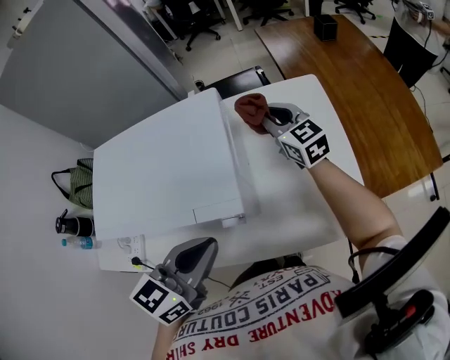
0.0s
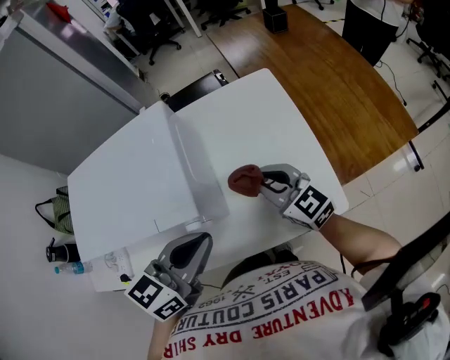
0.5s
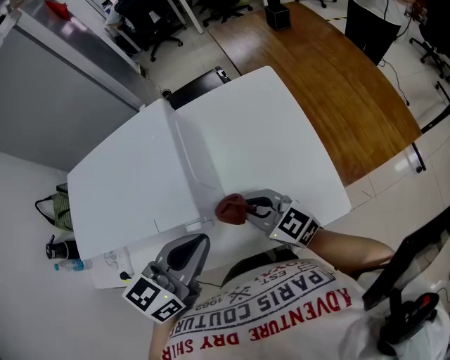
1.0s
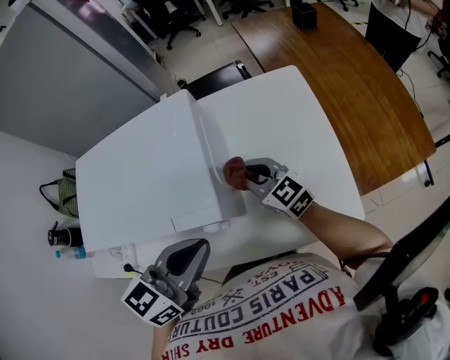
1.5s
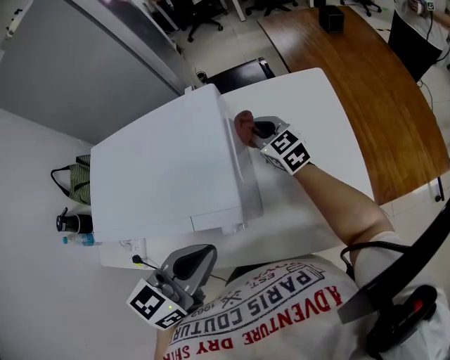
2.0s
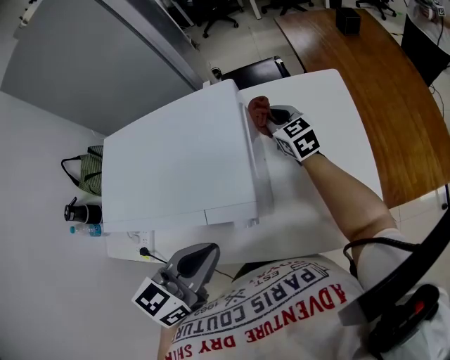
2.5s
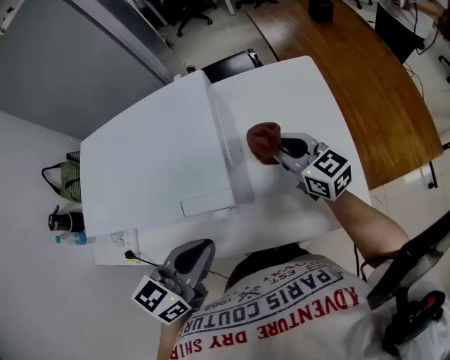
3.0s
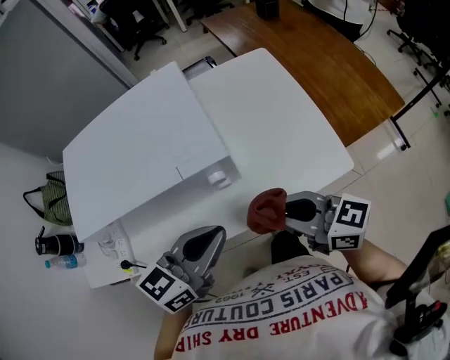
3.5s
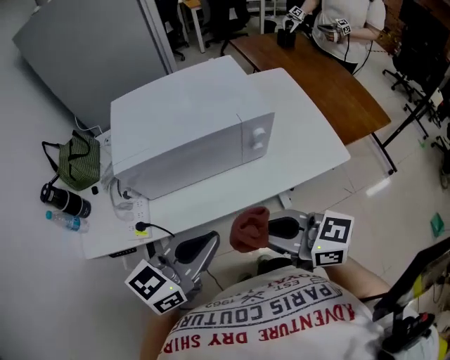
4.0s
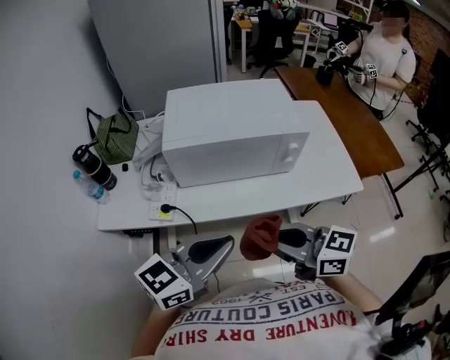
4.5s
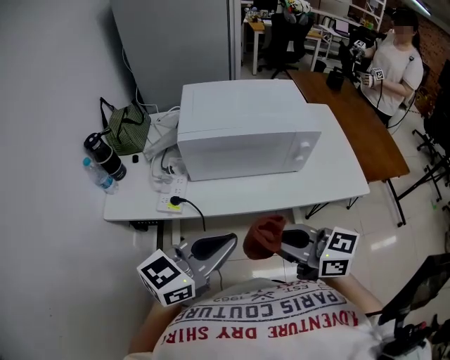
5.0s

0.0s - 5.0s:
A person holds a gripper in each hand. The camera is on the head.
0.0s - 2.5s: The left gripper reaches roughly 5 cm to the right, then returns. Meanwhile the right gripper heads downward, covering approximately 10 cm, and reaches approximately 25 cm backward, then returns.
2.5s - 5.0s: The left gripper travels backward and to the left by some 35 cm, and rotates roughly 20 degrees. Meanwhile the right gripper shifts roughly 60 cm backward and to the left, and rotates roughly 30 degrees.

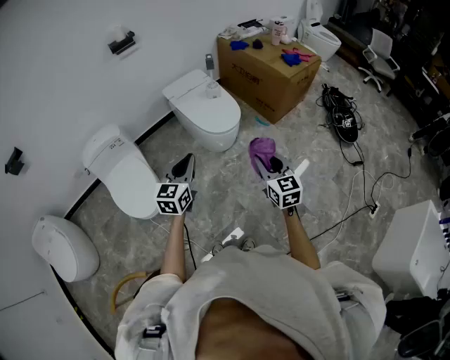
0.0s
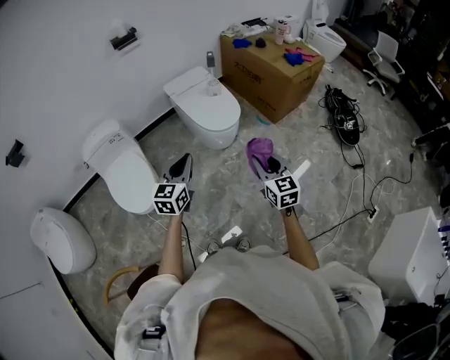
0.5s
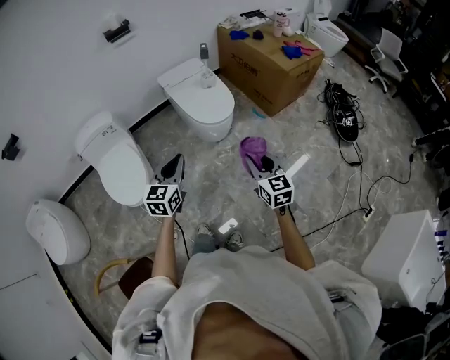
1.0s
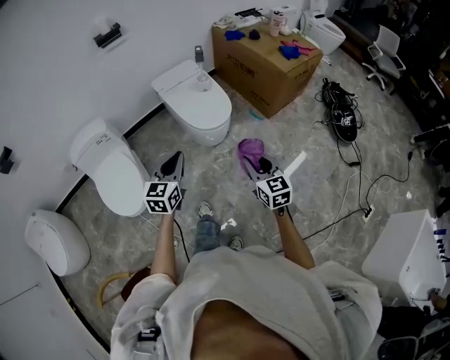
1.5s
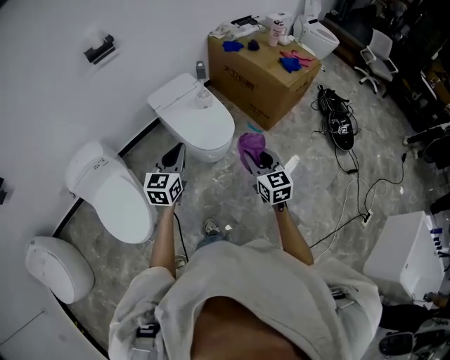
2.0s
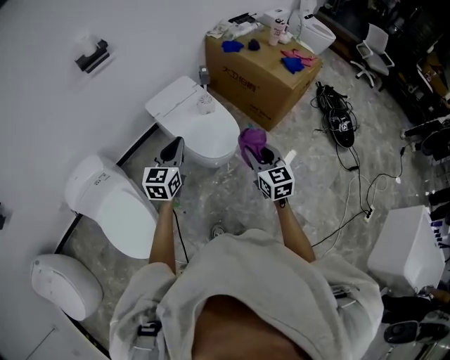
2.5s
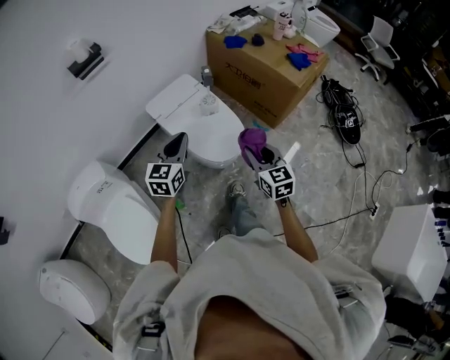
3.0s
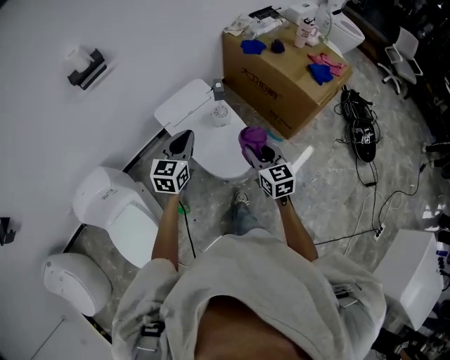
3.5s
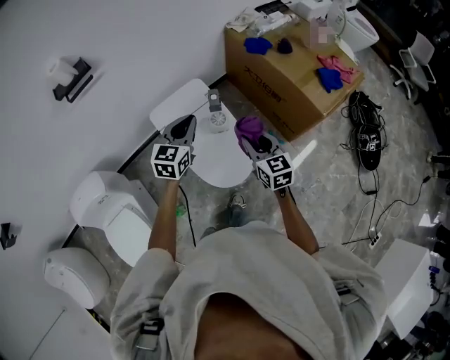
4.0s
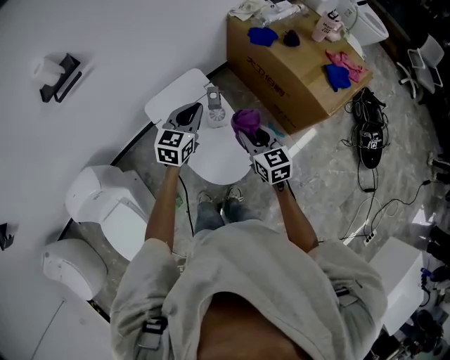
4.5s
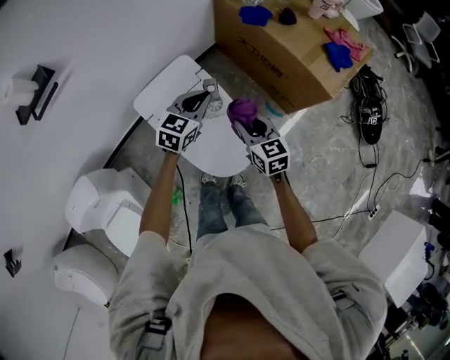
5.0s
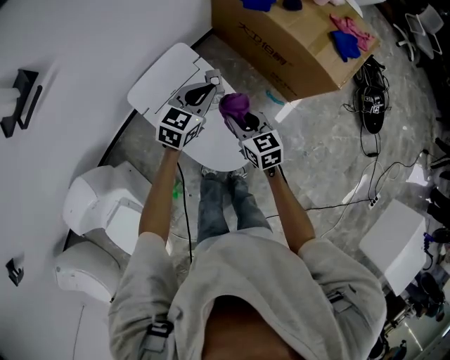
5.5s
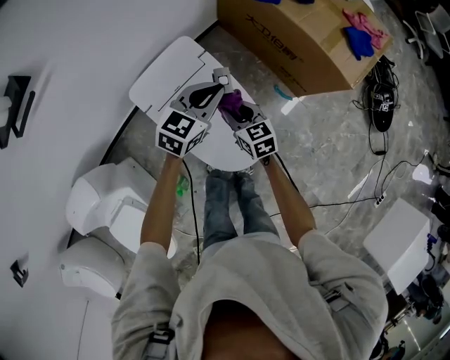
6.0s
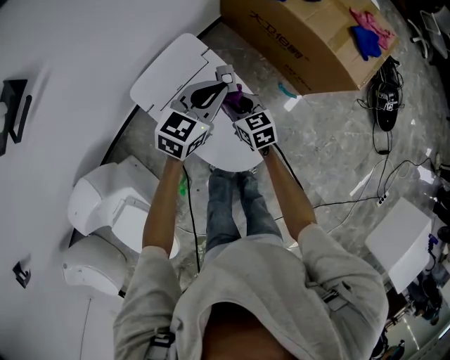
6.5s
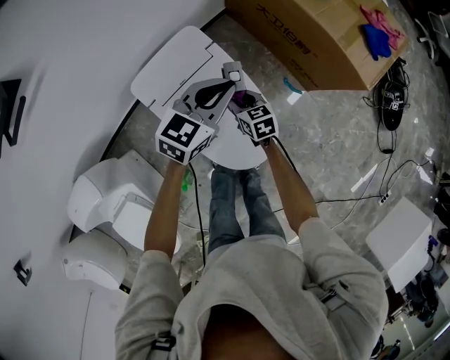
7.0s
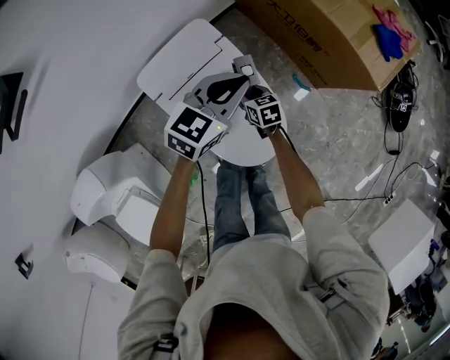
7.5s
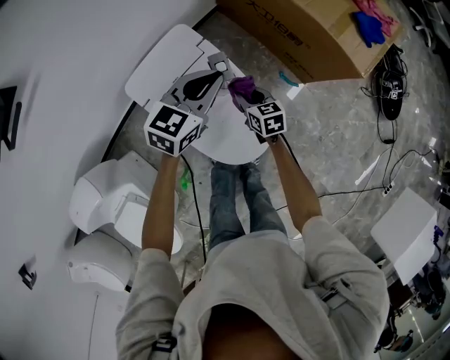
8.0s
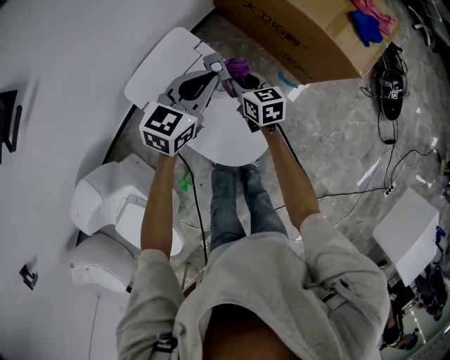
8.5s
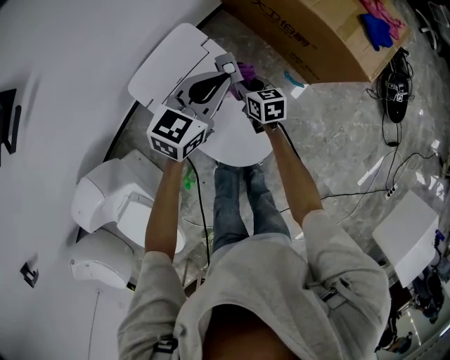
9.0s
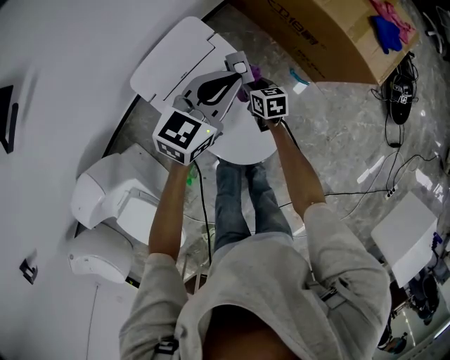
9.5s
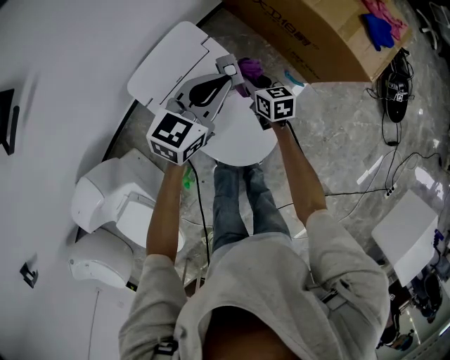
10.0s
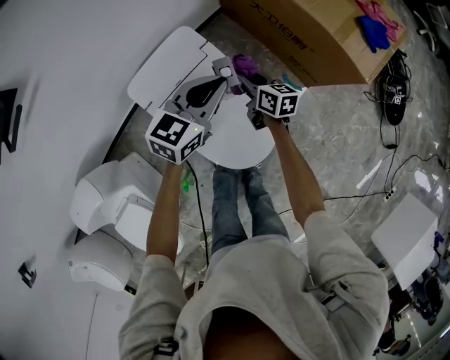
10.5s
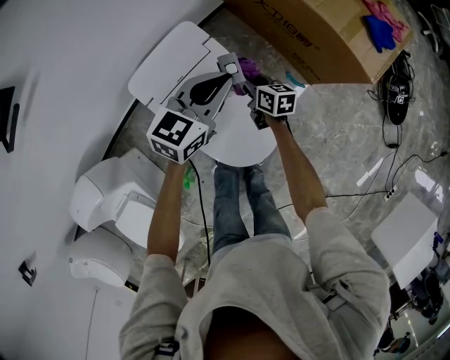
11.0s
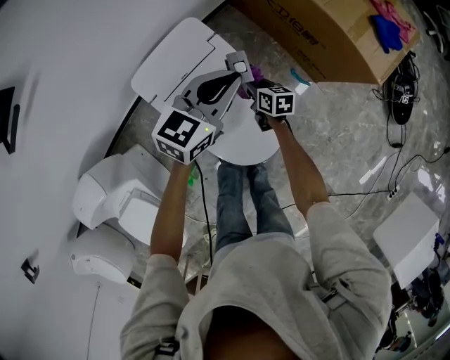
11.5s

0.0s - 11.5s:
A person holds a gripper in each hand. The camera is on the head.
0.0s - 2.0s: The grippers both shift forward by about 20 cm.
2.0s - 4.0s: Both grippers travel together forward, approximately 40 cm.
4.0s - 6.0s: The left gripper moves downward and forward, some 15 cm, and rotates approximately 30 degrees. Meanwhile the right gripper is displaced downward, to the left and forward by about 25 cm.
6.0s - 7.5s: The right gripper moves downward, some 15 cm.
7.5s - 9.5s: The right gripper travels upward and back again, approximately 10 cm each way.
9.5s - 11.5s: The right gripper travels upward and back again, approximately 10 cm each way.

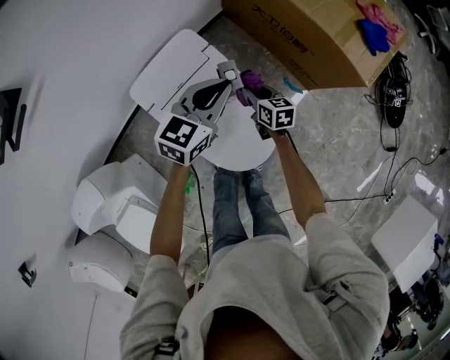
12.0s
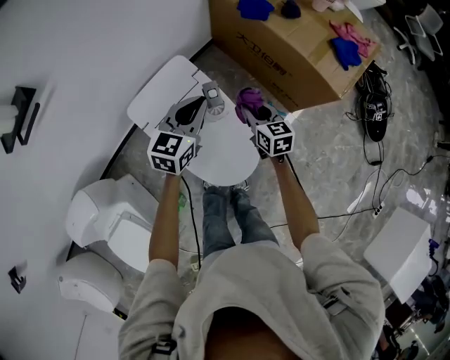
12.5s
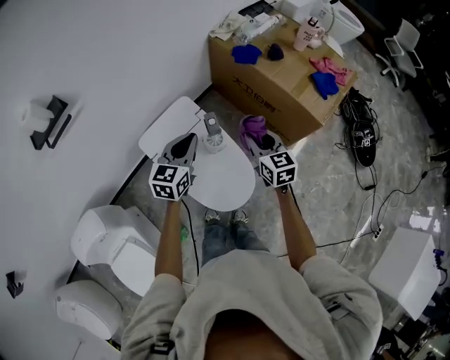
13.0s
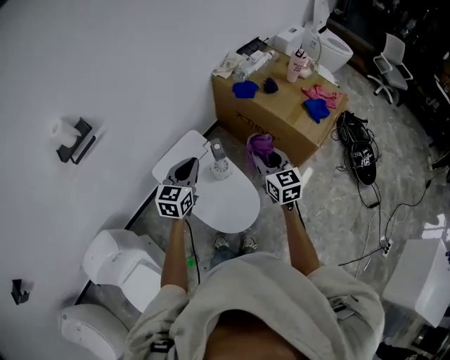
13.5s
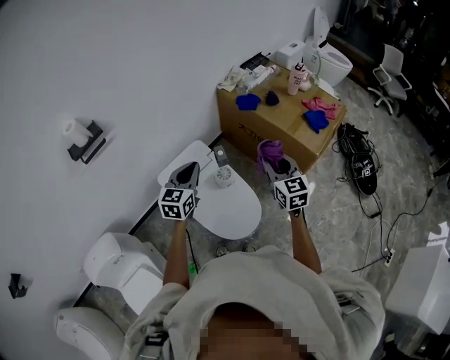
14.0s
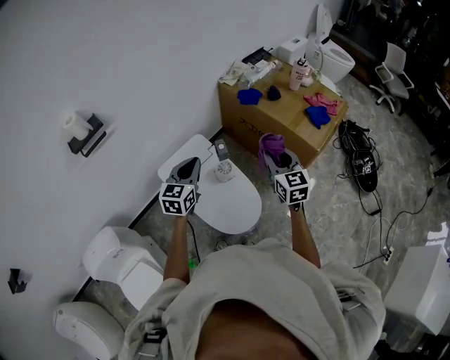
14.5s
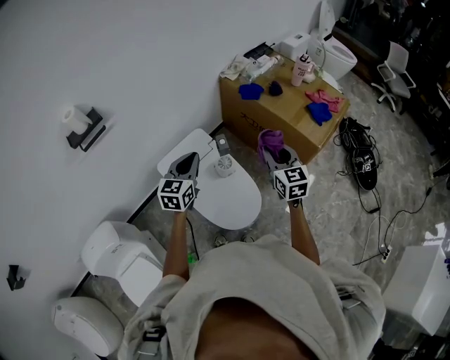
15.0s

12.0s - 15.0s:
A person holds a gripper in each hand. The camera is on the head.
12.0s - 13.5s: The left gripper goes about 15 cm upward, backward and to the left. The right gripper travels upward by some 35 cm, and turns by some 30 degrees.
13.5s - 15.0s: The grippers move only a little.

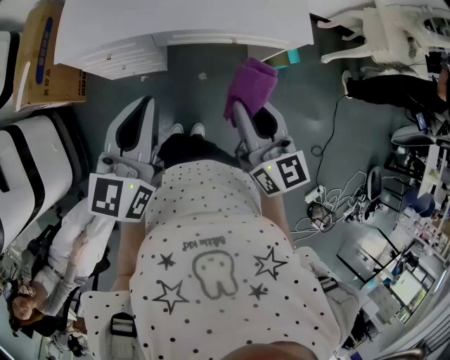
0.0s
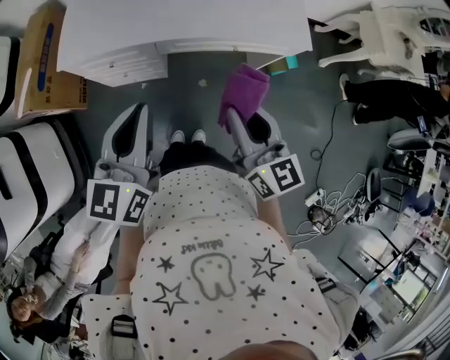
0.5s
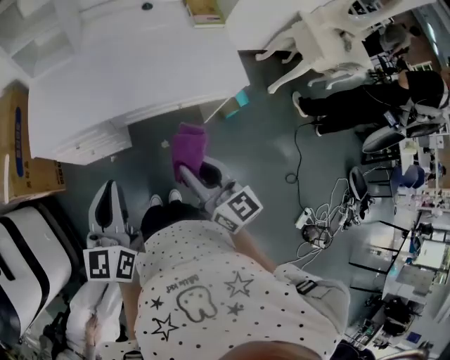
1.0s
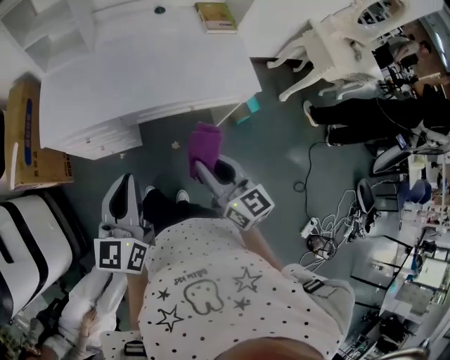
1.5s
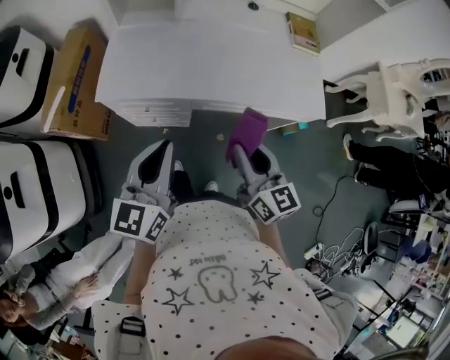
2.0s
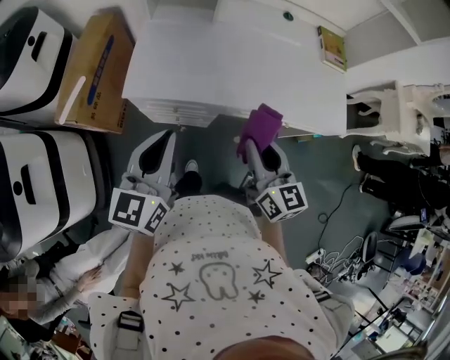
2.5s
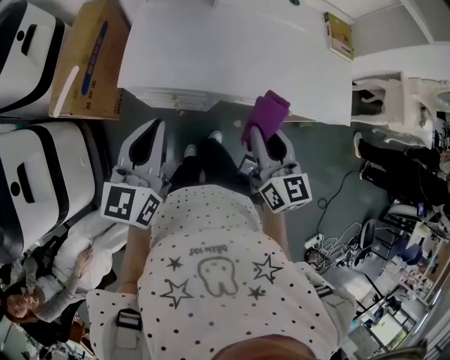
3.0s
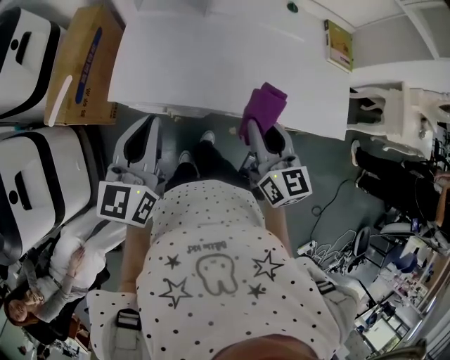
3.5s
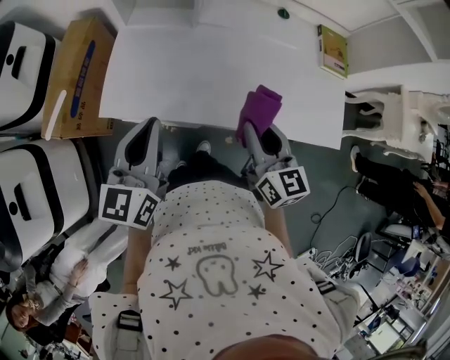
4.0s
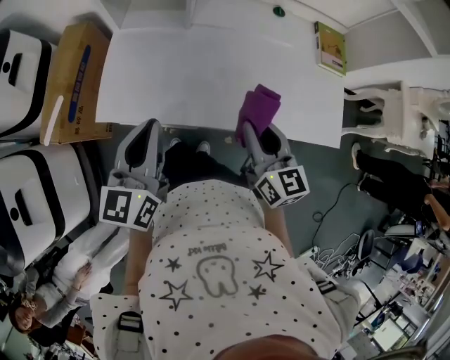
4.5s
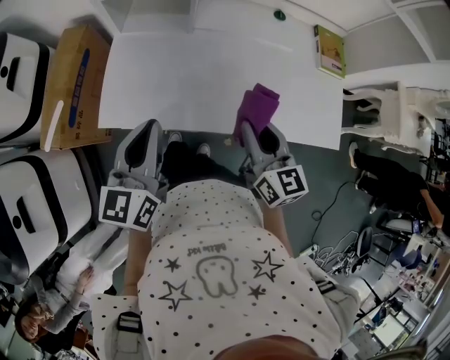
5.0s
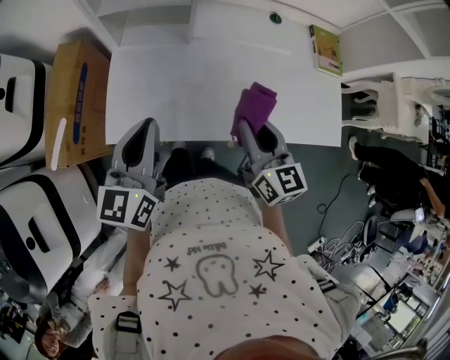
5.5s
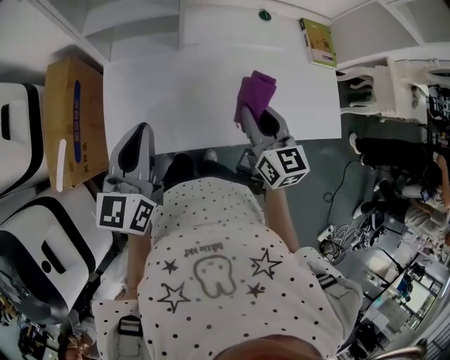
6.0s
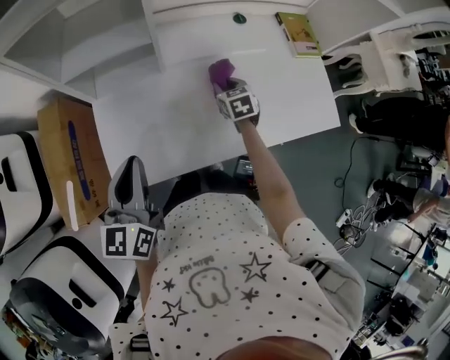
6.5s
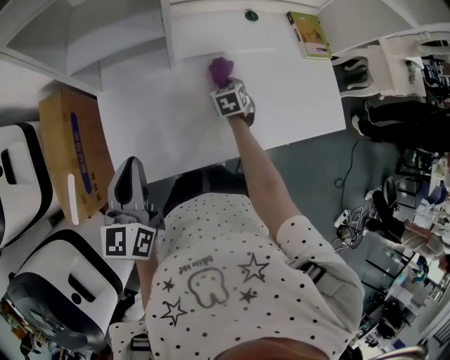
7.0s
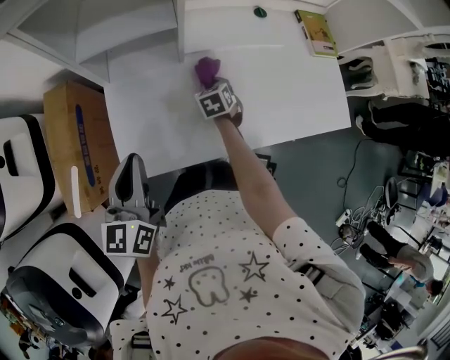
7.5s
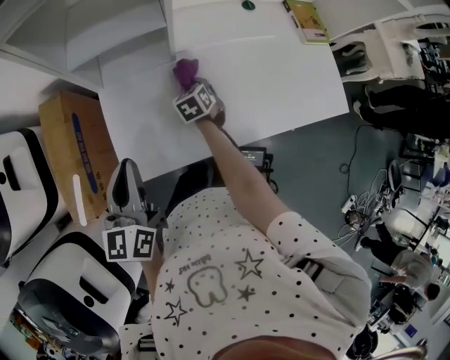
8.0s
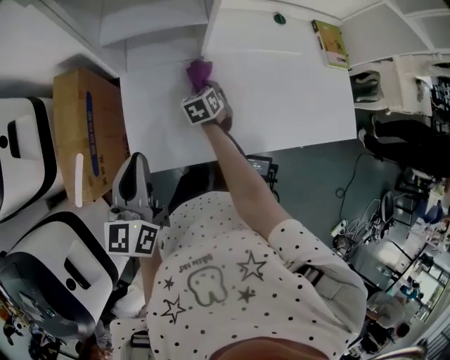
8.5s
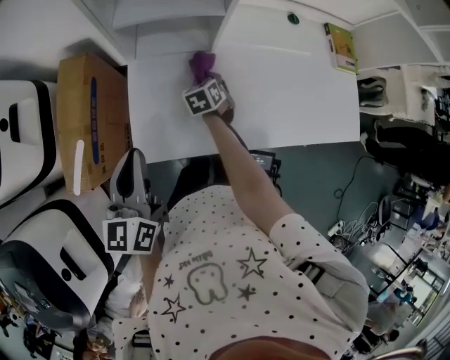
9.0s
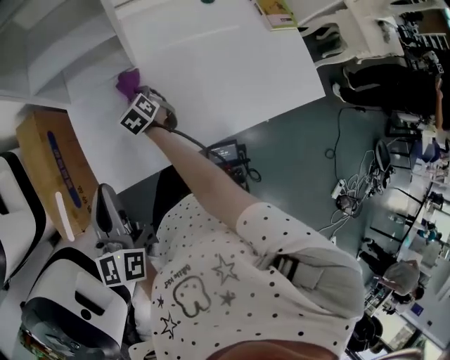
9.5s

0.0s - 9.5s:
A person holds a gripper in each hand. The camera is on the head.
0.0s - 2.0s: The left gripper is displaced to the left and forward by roughly 10 cm; the right gripper is displaced forward and to the left by approximately 10 cm.
2.0s - 4.0s: The two grippers go about 20 cm forward.
4.0s - 5.5s: The two grippers go roughly 5 cm forward.
5.5s - 7.5s: The left gripper moves to the left, roughly 10 cm. Meanwhile the right gripper heads downward and forward, covering some 30 cm, and angles its fingers downward, by some 40 degrees.
7.5s - 9.5s: The right gripper goes roughly 10 cm to the left.
